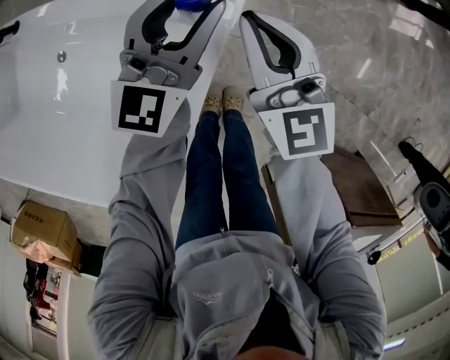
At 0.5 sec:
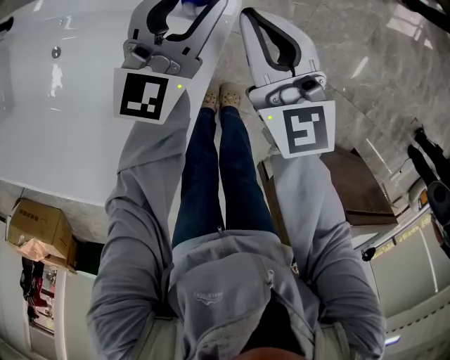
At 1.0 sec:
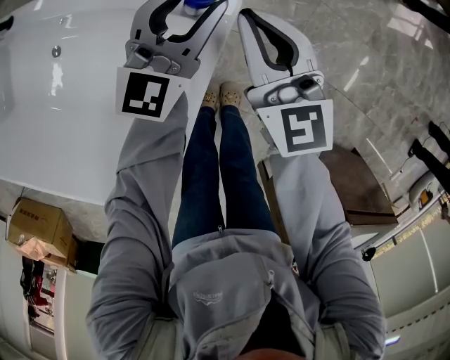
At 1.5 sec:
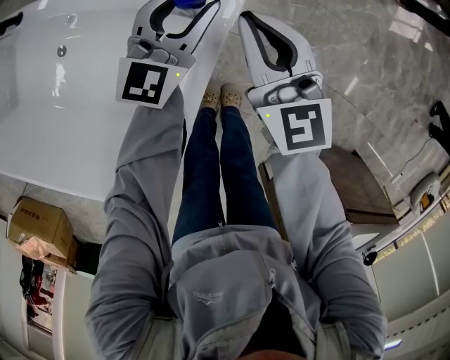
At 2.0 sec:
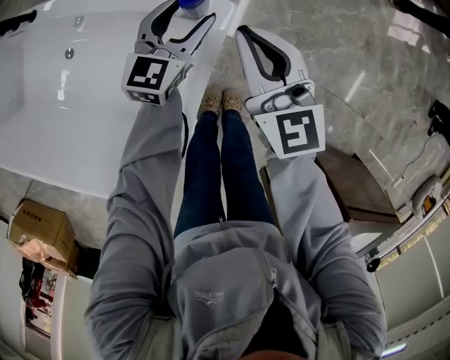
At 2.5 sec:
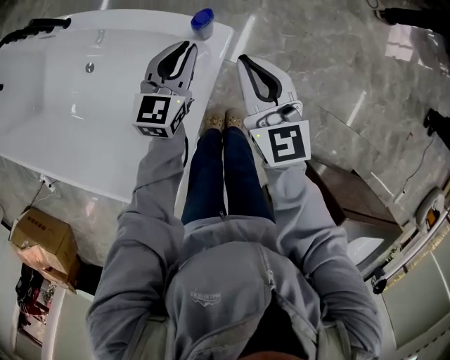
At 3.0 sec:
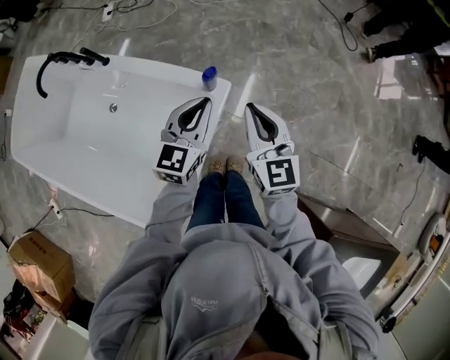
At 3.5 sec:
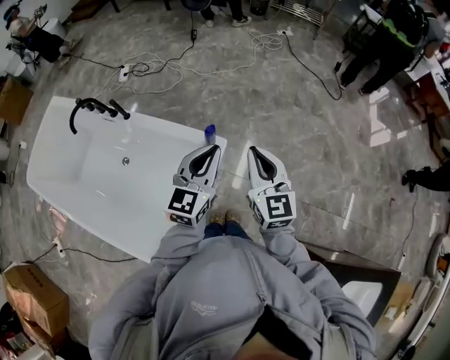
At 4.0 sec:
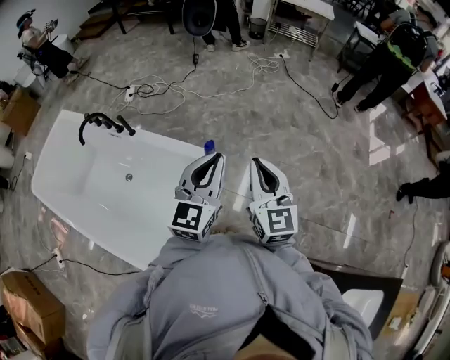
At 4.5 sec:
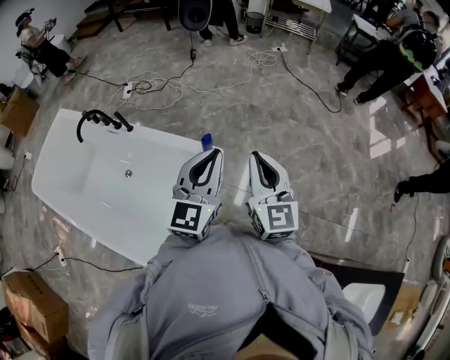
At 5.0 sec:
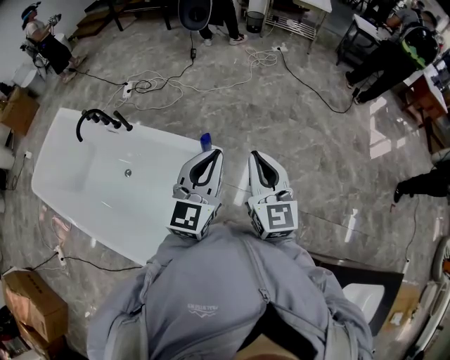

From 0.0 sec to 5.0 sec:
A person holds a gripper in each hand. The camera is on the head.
From 0.0 sec to 2.5 sec: The right gripper moves upward and backward, some 10 cm. The left gripper goes some 5 cm backward, moves roughly 5 cm downward and comes back, swivels some 20 degrees, and closes its fingers.
From 2.5 sec to 5.0 sec: Both grippers travel together upward, approximately 35 cm. The left gripper swivels roughly 20 degrees.

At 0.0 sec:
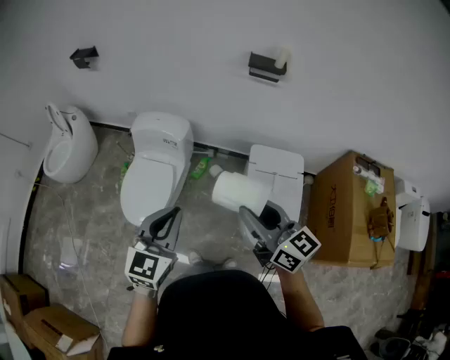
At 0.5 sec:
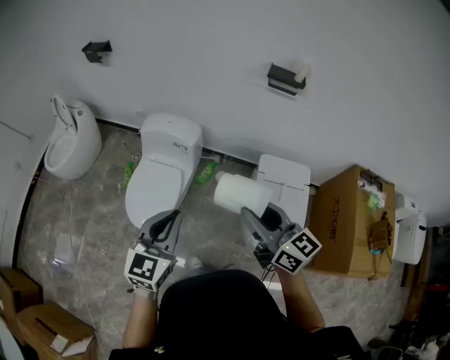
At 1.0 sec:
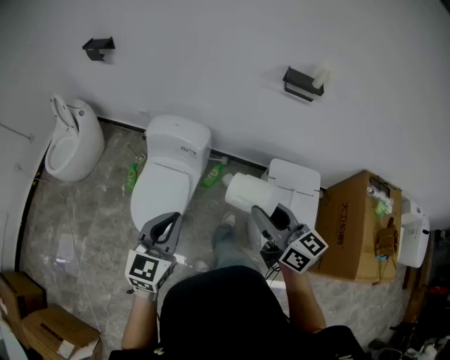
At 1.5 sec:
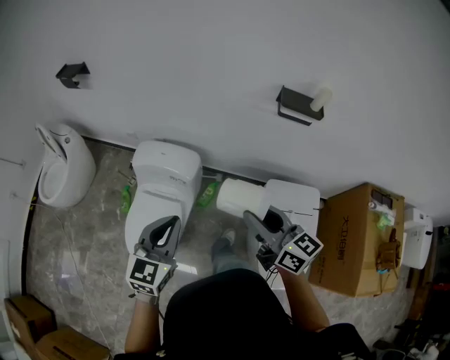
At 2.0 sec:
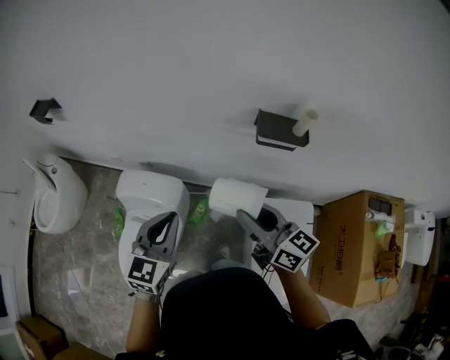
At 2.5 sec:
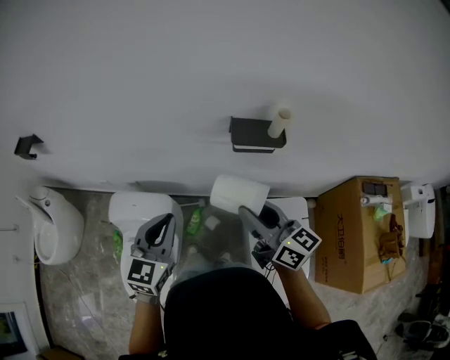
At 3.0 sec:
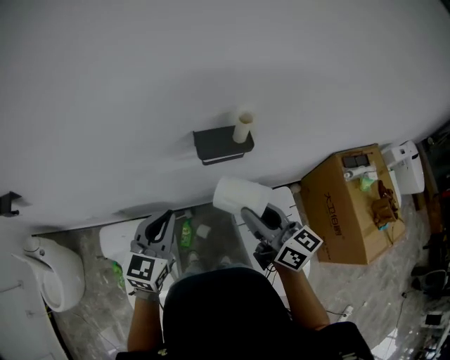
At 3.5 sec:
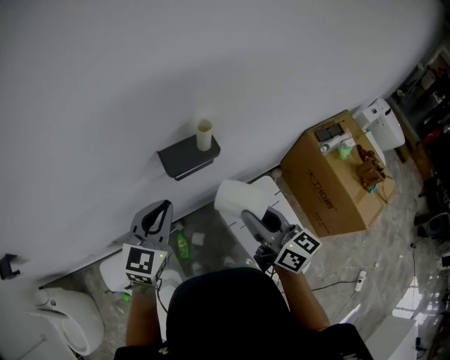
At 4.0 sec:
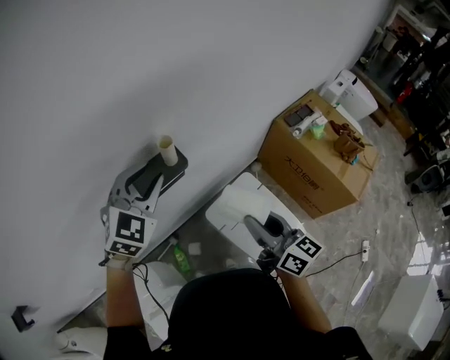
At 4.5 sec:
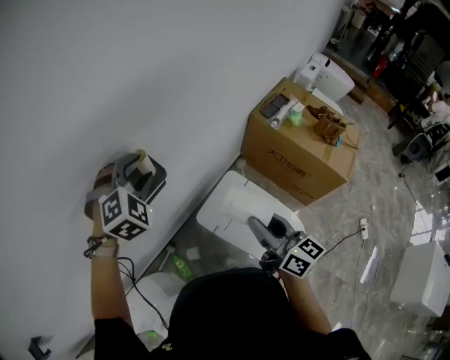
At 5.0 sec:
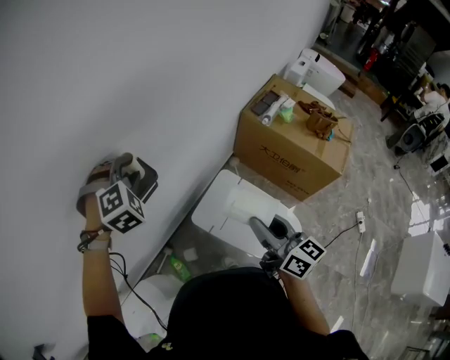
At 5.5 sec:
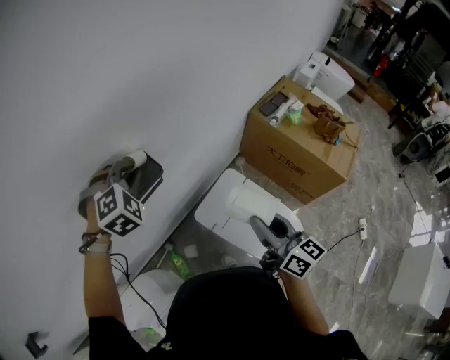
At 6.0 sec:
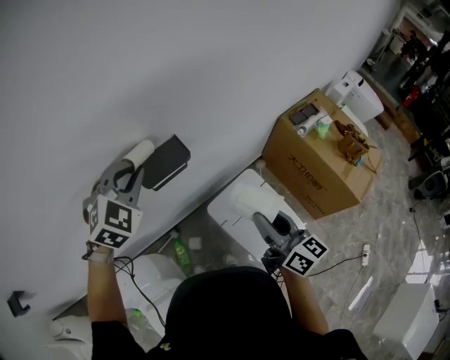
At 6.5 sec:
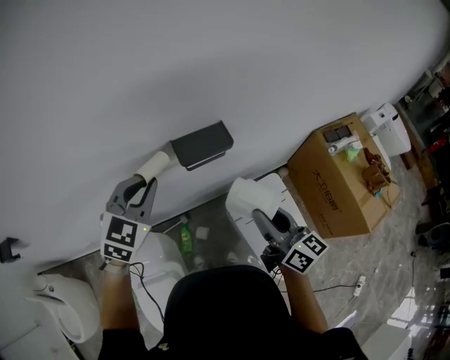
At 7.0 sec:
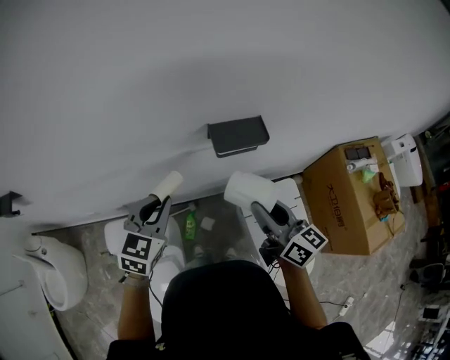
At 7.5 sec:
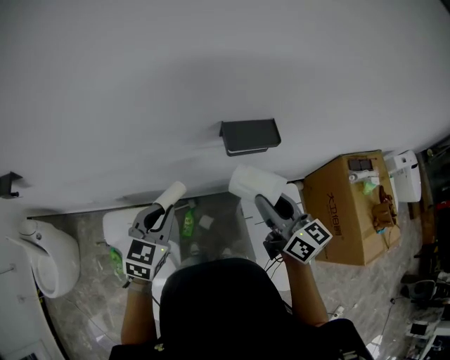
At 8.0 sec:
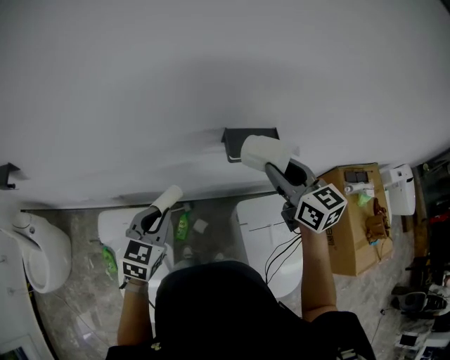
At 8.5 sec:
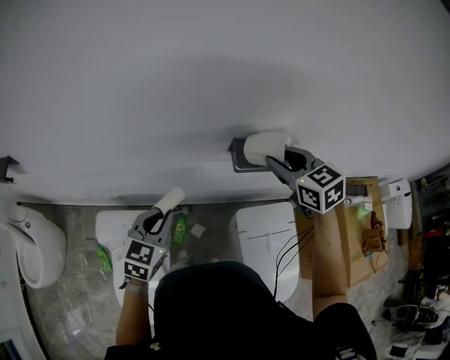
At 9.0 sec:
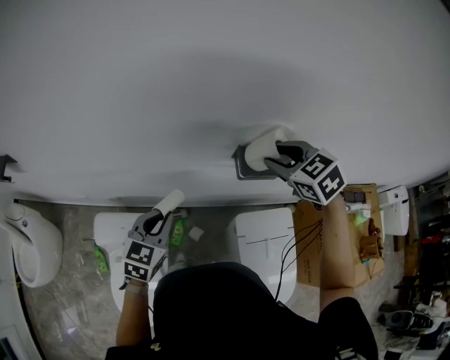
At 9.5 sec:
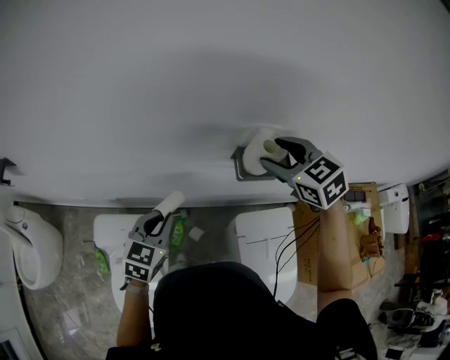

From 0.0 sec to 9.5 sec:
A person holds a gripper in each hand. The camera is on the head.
From 0.0 sec to 2.0 sec: The two grippers travel together, forward, about 40 cm.
From 2.0 sec to 4.0 sec: The right gripper shifts by about 20 cm, and rotates some 60 degrees; the left gripper changes place by roughly 40 cm, turns by about 60 degrees, and opens.
From 4.0 sec to 5.5 sec: The right gripper heads to the right, covering roughly 5 cm; the left gripper shifts about 5 cm downward, and changes its angle by about 30 degrees.
From 5.5 sec to 7.5 sec: The left gripper changes place by roughly 35 cm, and rotates around the line of its fingers by approximately 70 degrees, counterclockwise from behind; the right gripper changes place by approximately 25 cm, and rotates approximately 40 degrees.
From 7.5 sec to 9.5 sec: The right gripper is displaced forward by about 20 cm, angles its fingers downward, by some 30 degrees, and opens its fingers. Meanwhile the left gripper changes place by approximately 5 cm.

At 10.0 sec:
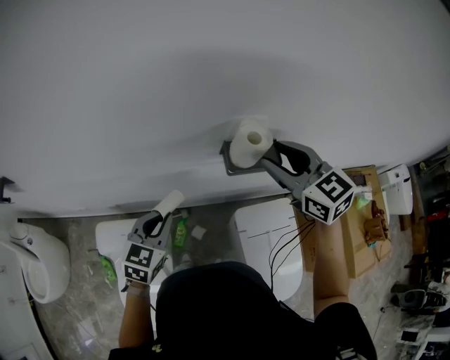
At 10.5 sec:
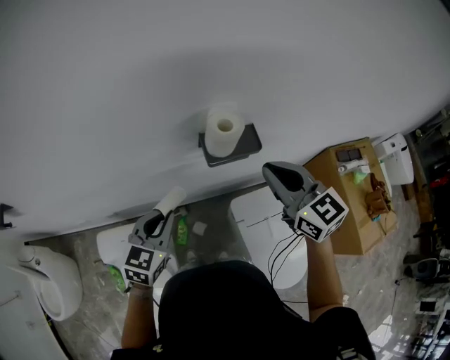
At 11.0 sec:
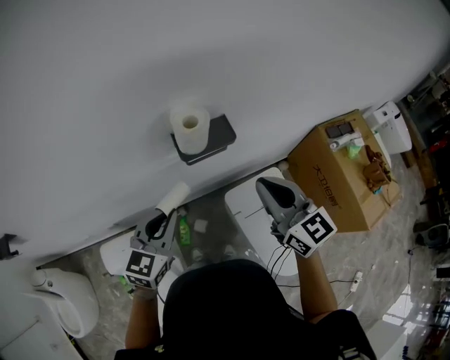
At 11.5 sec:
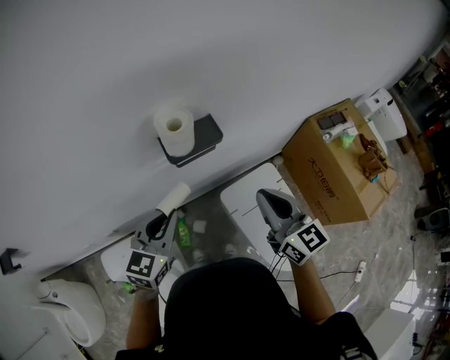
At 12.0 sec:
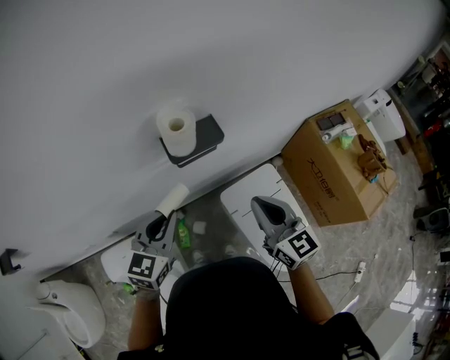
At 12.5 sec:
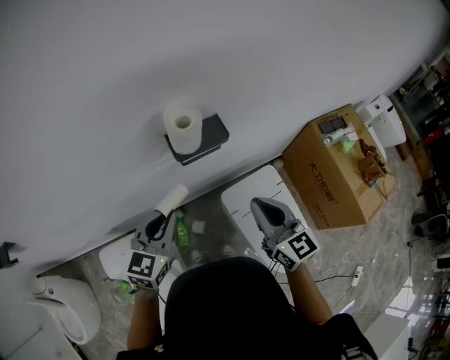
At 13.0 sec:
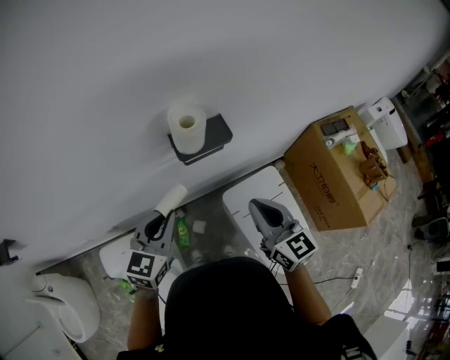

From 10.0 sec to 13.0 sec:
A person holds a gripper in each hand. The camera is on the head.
From 10.0 sec to 11.5 sec: The left gripper moves to the right, roughly 15 cm. Meanwhile the right gripper heads backward, to the right and downward, covering some 20 cm, swivels roughly 40 degrees, and closes up.
From 11.5 sec to 13.0 sec: The right gripper moves about 5 cm.

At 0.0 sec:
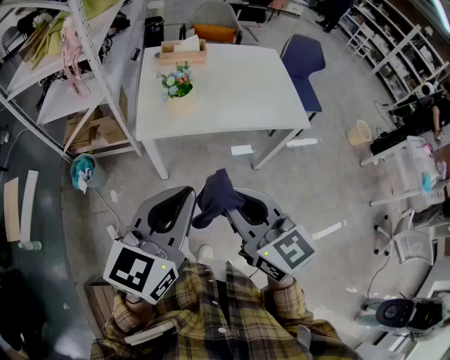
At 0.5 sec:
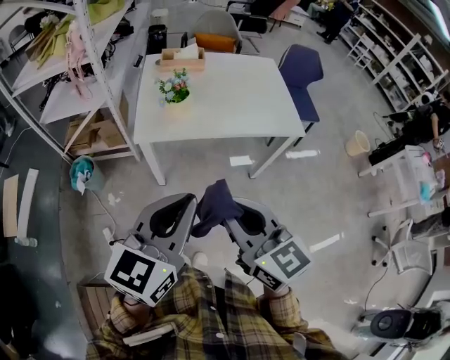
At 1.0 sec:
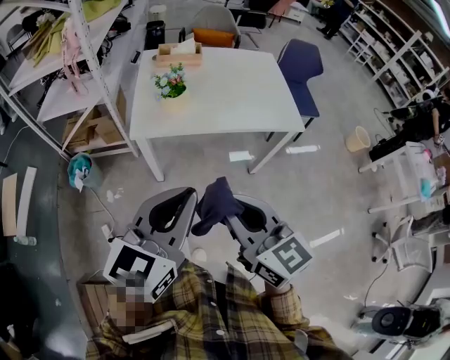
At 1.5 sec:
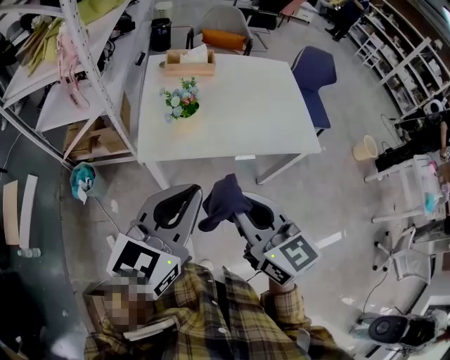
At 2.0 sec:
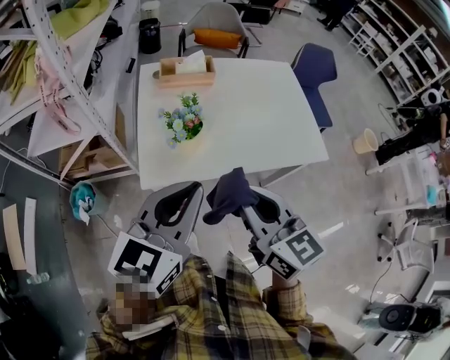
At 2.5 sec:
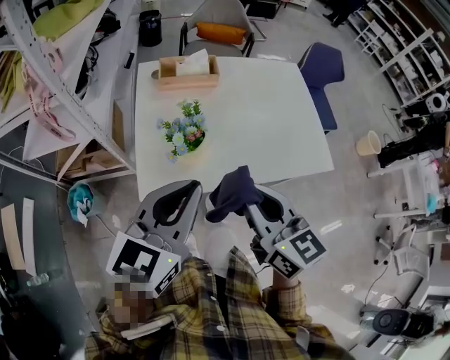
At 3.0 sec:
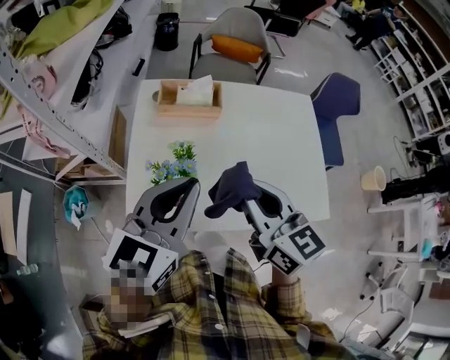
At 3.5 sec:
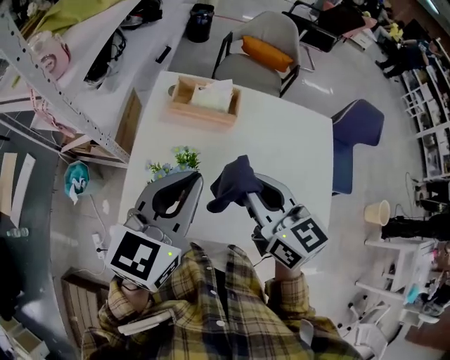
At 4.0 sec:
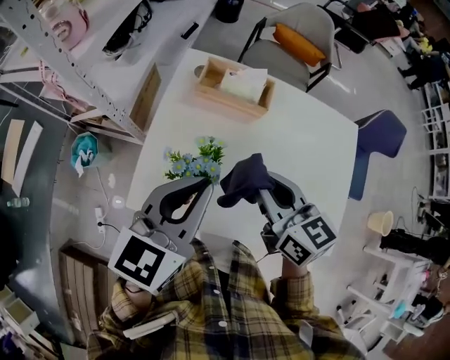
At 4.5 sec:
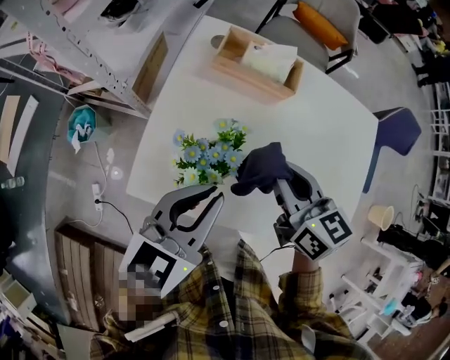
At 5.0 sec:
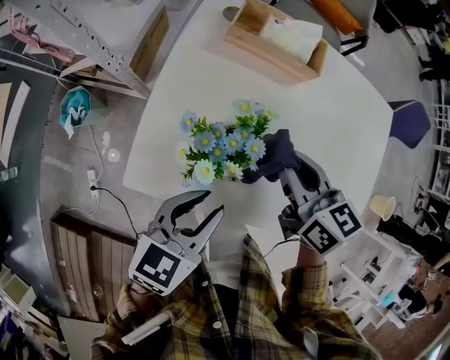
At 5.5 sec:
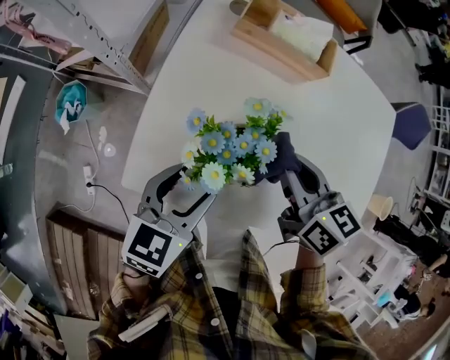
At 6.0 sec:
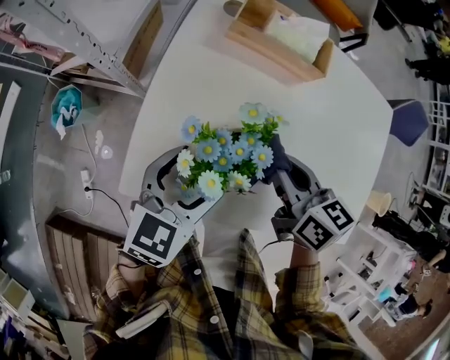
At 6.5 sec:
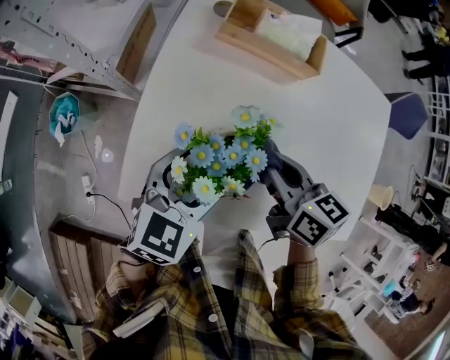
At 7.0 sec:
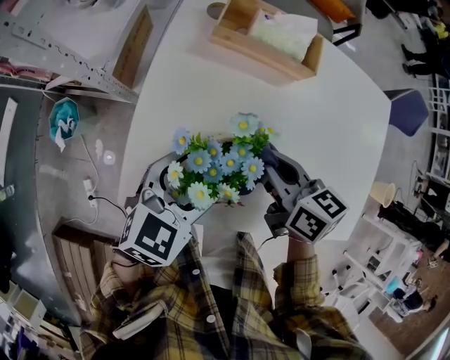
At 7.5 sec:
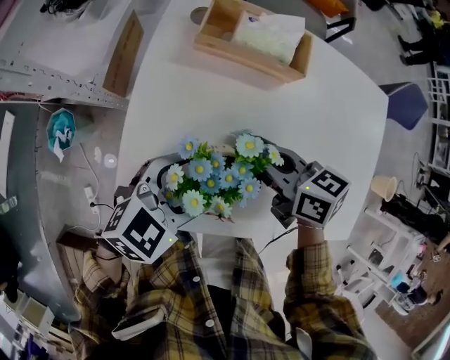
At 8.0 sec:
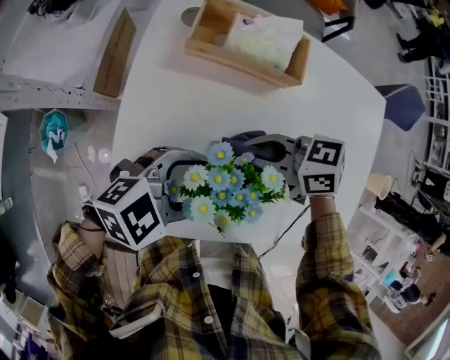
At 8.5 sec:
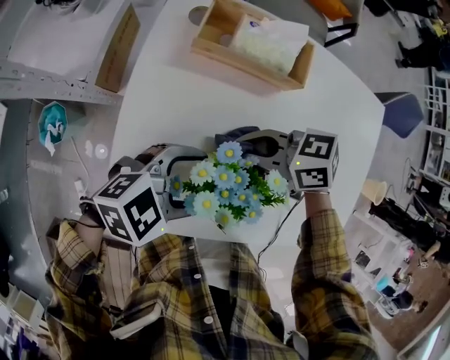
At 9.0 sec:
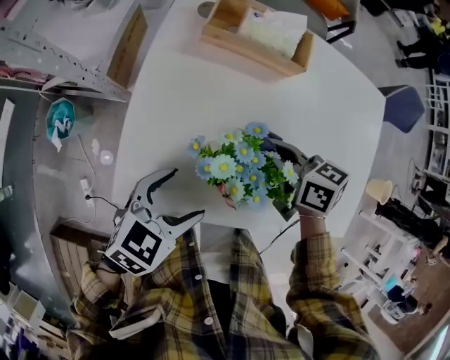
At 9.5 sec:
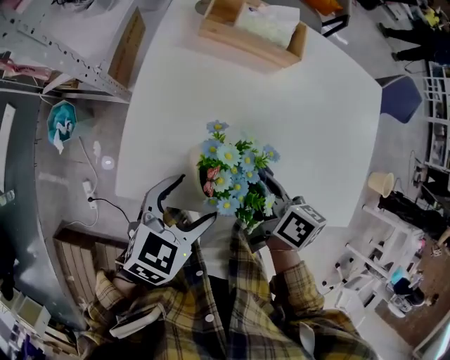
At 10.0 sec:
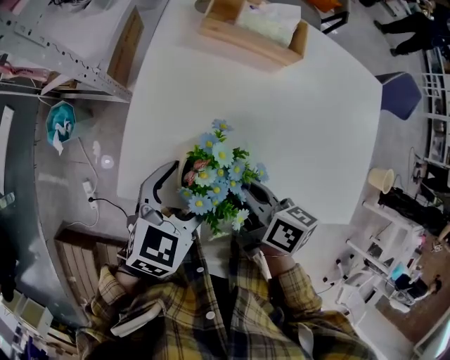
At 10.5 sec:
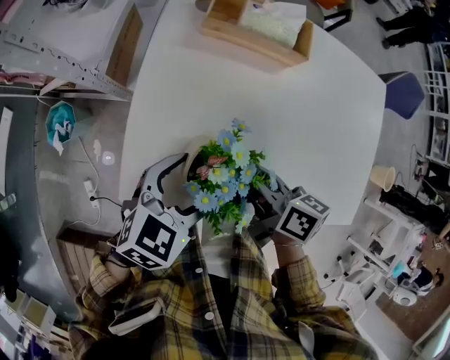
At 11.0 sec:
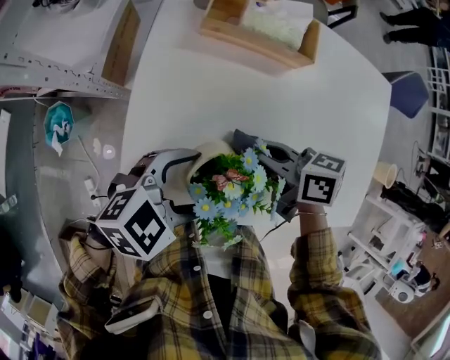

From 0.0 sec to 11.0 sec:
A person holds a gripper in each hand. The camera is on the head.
From 0.0 sec to 2.0 sec: The two grippers go approximately 20 cm forward.
From 2.0 sec to 3.5 sec: Both grippers move forward, roughly 25 cm. The right gripper rotates approximately 20 degrees.
From 3.5 sec to 5.5 sec: The grippers both shift downward by roughly 20 cm. The left gripper changes its angle by approximately 20 degrees, and opens up.
From 5.5 sec to 7.5 sec: The right gripper changes place by approximately 5 cm. The left gripper changes place by some 5 cm, and changes its angle by about 40 degrees.
From 7.5 sec to 9.0 sec: The left gripper moves approximately 5 cm.
From 9.0 sec to 11.0 sec: The left gripper swivels approximately 30 degrees.
